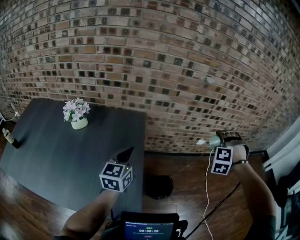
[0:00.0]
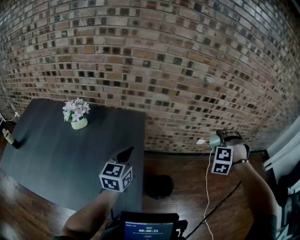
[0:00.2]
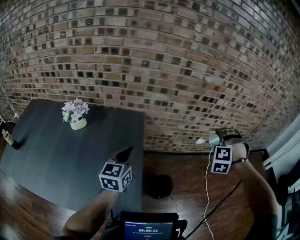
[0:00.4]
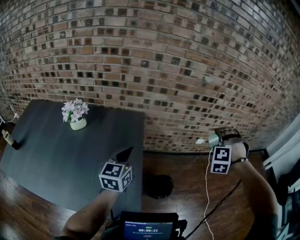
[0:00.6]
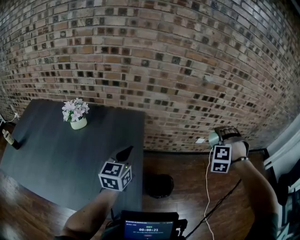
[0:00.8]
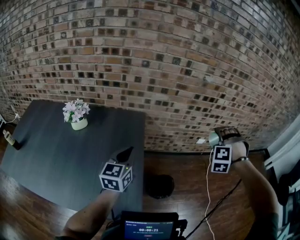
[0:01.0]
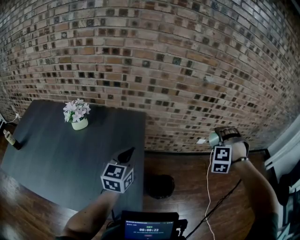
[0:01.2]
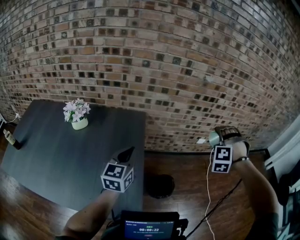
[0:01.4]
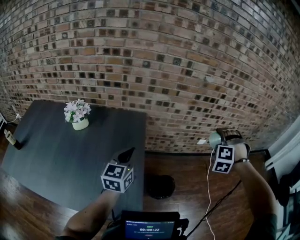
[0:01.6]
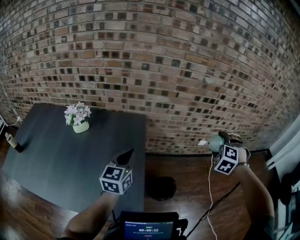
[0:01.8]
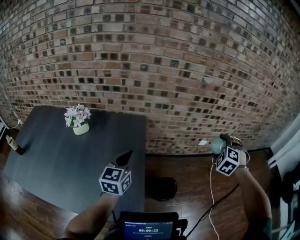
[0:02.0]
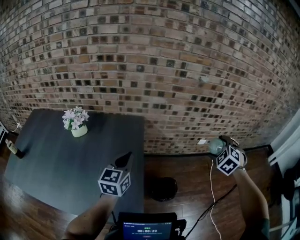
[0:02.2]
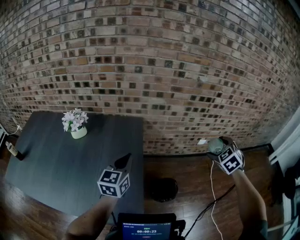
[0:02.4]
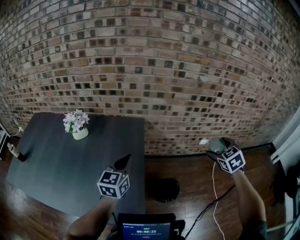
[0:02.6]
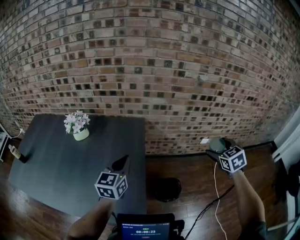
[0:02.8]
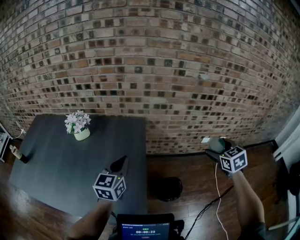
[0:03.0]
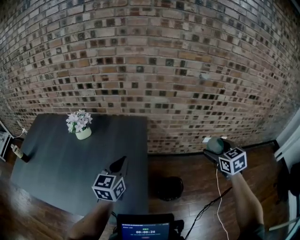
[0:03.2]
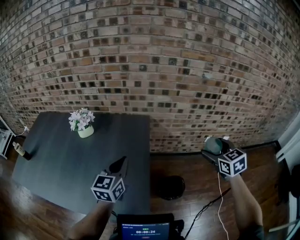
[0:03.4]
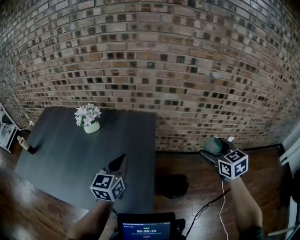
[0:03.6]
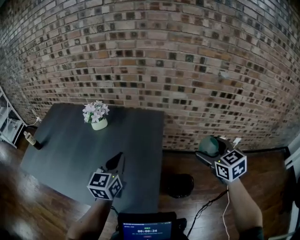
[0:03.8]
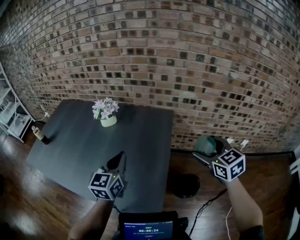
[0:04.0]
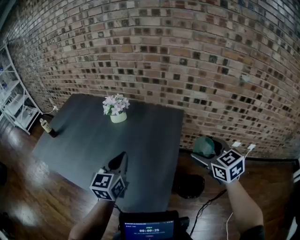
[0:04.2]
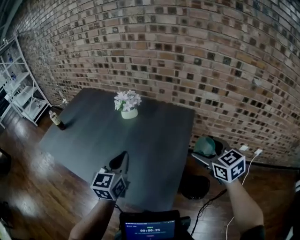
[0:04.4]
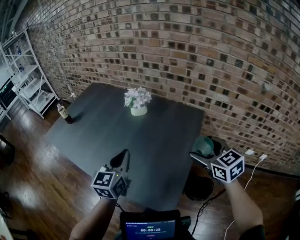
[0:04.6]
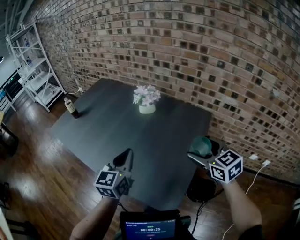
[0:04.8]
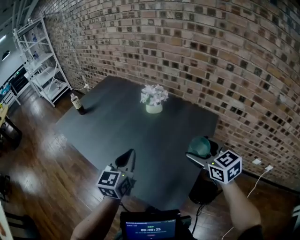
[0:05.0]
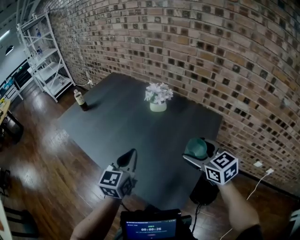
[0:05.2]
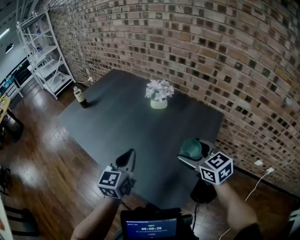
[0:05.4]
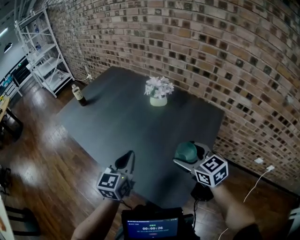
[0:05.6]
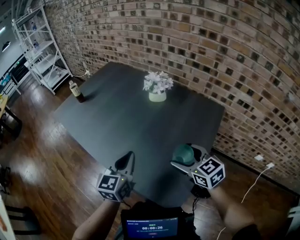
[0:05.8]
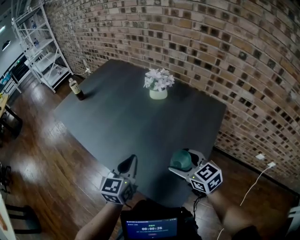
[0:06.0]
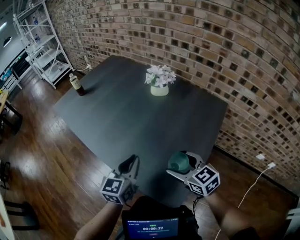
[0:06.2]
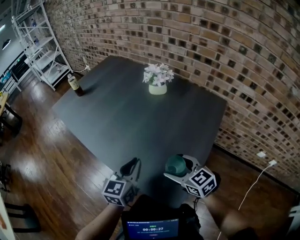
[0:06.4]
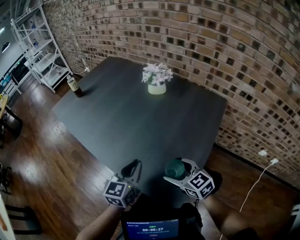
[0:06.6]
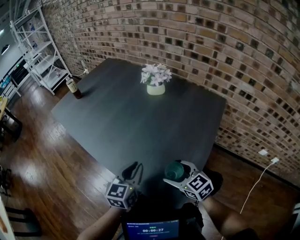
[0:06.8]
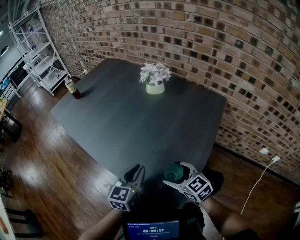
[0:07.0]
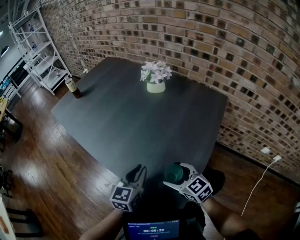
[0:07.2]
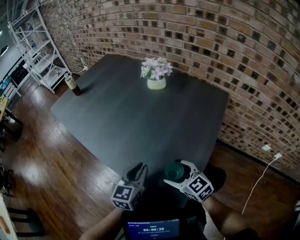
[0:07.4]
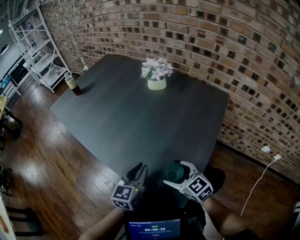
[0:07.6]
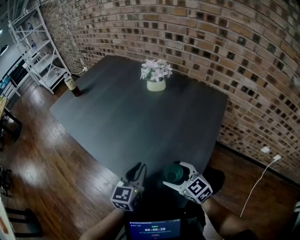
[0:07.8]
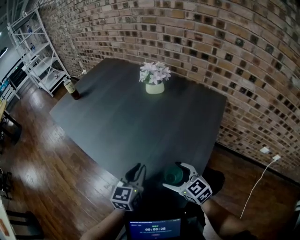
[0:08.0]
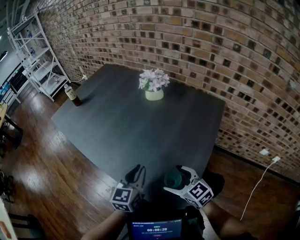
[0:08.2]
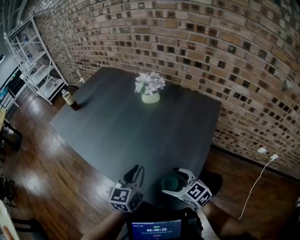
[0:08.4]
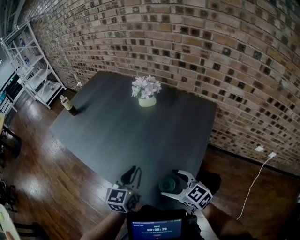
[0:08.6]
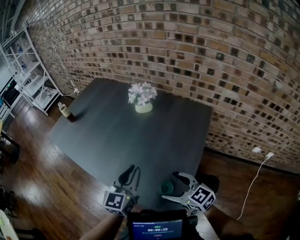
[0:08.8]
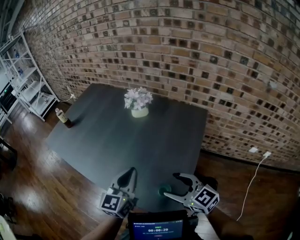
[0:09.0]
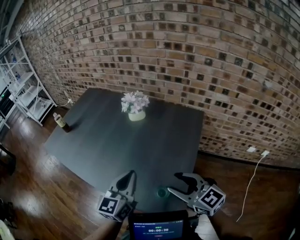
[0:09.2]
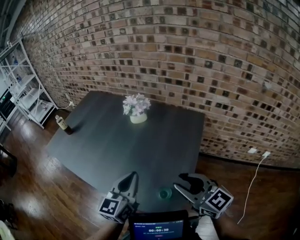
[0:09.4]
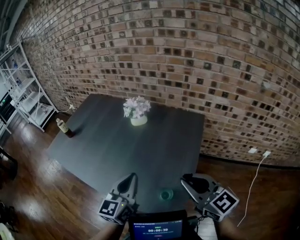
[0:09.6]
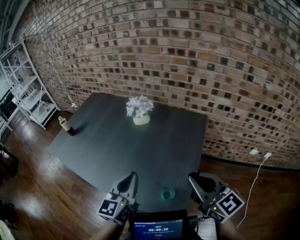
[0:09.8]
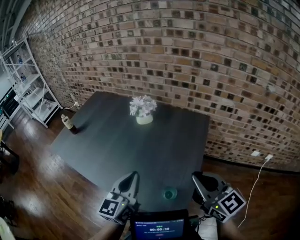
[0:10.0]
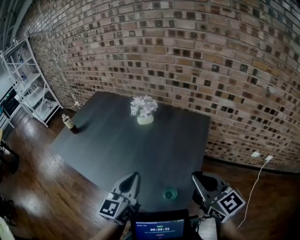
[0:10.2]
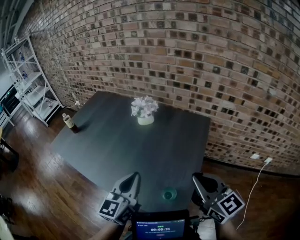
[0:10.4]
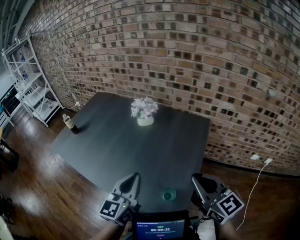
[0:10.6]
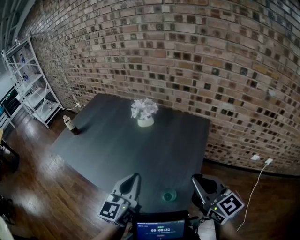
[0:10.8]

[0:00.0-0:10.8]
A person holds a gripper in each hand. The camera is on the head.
0:00.0 to 0:01.6: There are only small adjustments of the grippers.
0:01.6 to 0:03.0: The right gripper twists approximately 70 degrees clockwise, seen from behind.
0:03.0 to 0:04.6: The right gripper moves roughly 35 cm, and rotates some 40 degrees. The left gripper shifts by roughly 25 cm, and swivels some 30 degrees.
0:04.6 to 0:06.2: The right gripper goes roughly 20 cm to the left and downward, and changes its angle by approximately 20 degrees; the left gripper heads downward, covering approximately 10 cm.
0:06.2 to 0:07.8: The two grippers go about 10 cm downward.
0:07.8 to 0:09.2: The grippers both shift upward by roughly 20 cm. The right gripper closes its fingers.
0:09.2 to 0:10.8: The right gripper shifts about 10 cm upward, and closes up, while the left gripper shifts by about 5 cm.

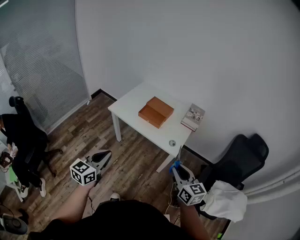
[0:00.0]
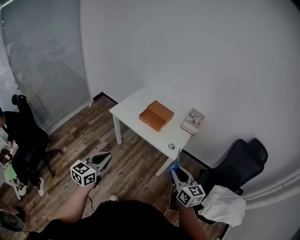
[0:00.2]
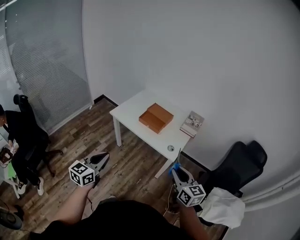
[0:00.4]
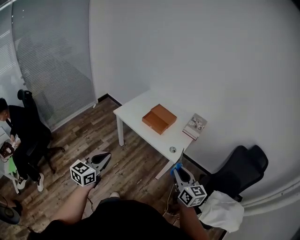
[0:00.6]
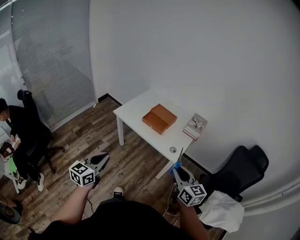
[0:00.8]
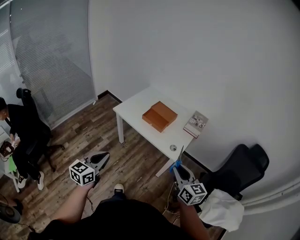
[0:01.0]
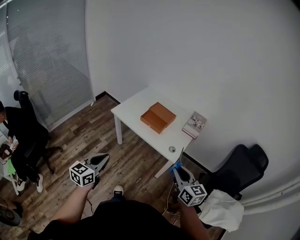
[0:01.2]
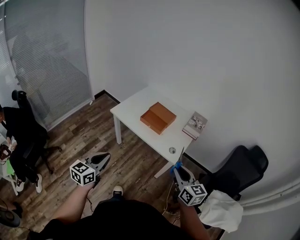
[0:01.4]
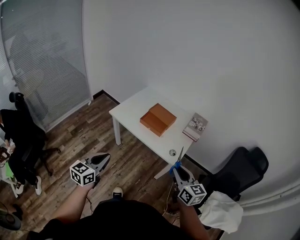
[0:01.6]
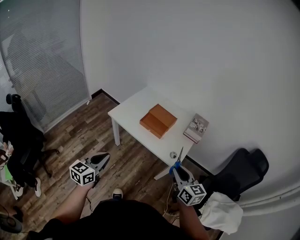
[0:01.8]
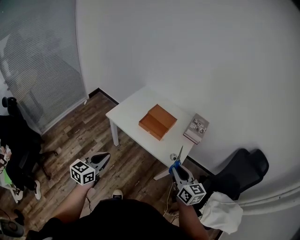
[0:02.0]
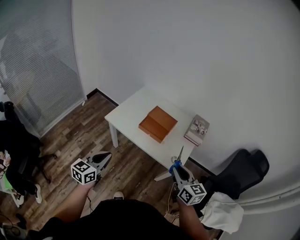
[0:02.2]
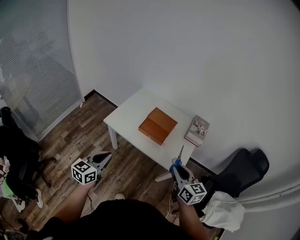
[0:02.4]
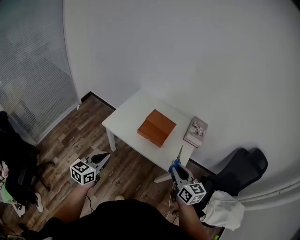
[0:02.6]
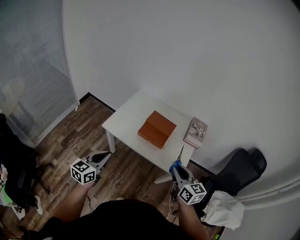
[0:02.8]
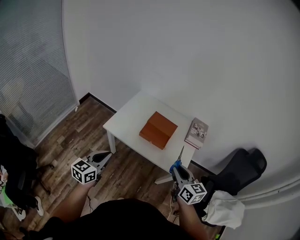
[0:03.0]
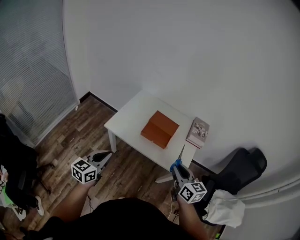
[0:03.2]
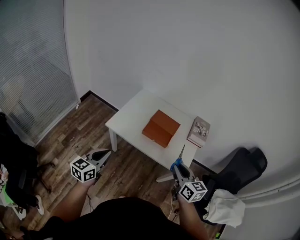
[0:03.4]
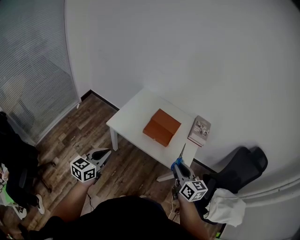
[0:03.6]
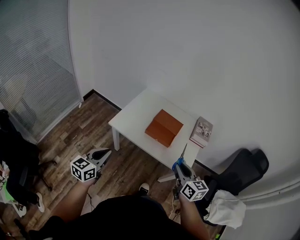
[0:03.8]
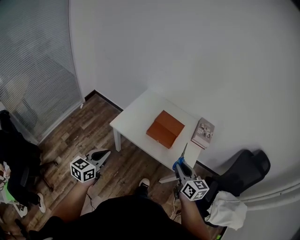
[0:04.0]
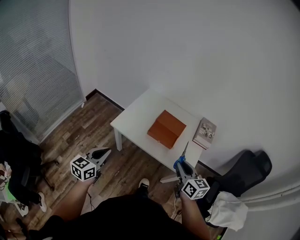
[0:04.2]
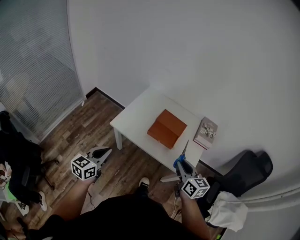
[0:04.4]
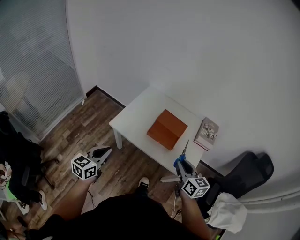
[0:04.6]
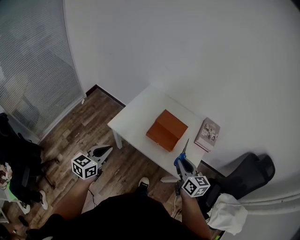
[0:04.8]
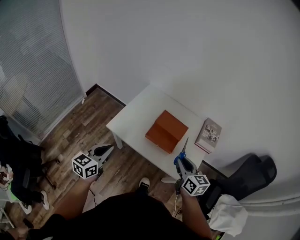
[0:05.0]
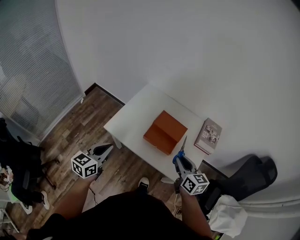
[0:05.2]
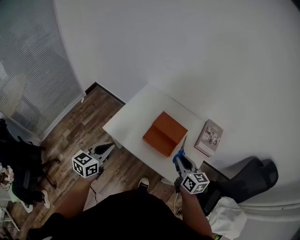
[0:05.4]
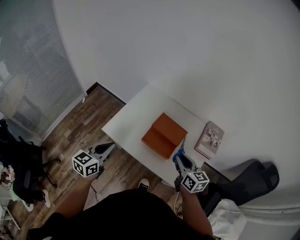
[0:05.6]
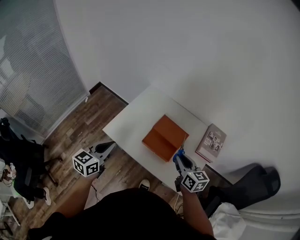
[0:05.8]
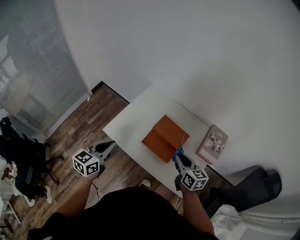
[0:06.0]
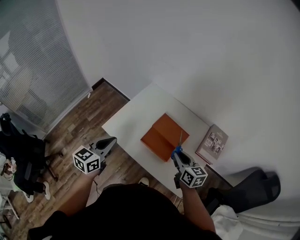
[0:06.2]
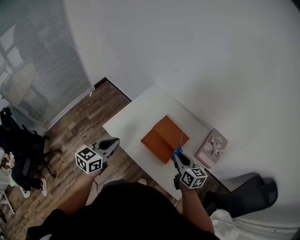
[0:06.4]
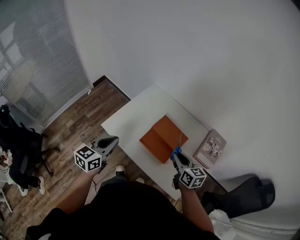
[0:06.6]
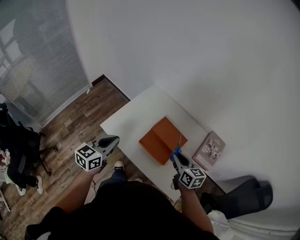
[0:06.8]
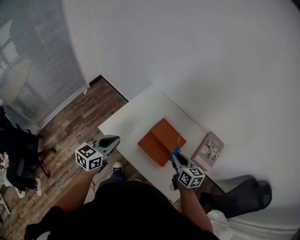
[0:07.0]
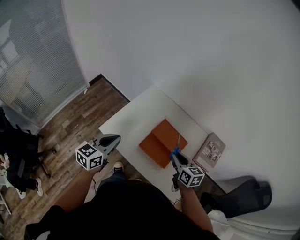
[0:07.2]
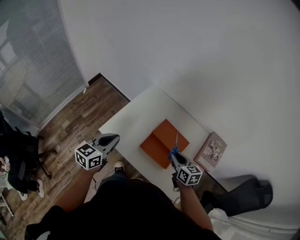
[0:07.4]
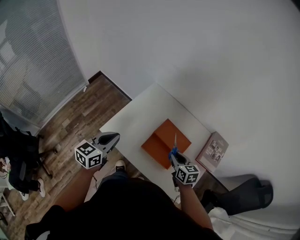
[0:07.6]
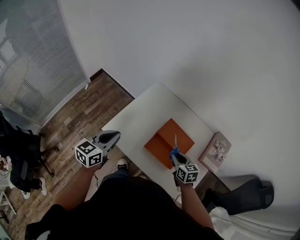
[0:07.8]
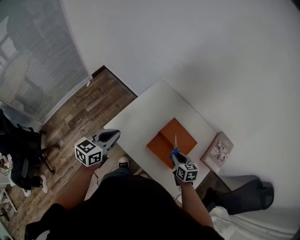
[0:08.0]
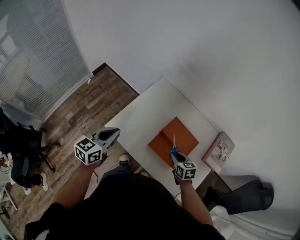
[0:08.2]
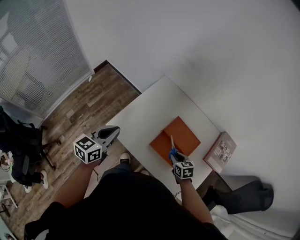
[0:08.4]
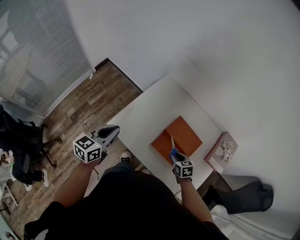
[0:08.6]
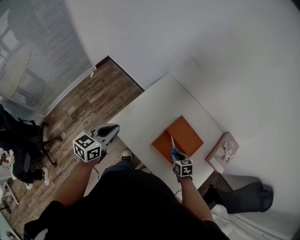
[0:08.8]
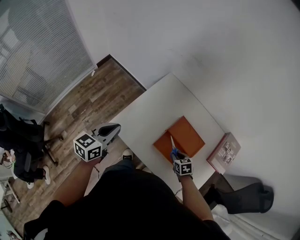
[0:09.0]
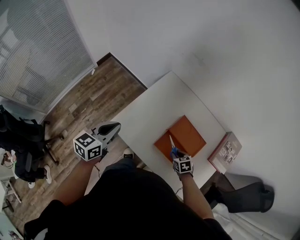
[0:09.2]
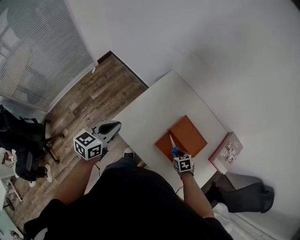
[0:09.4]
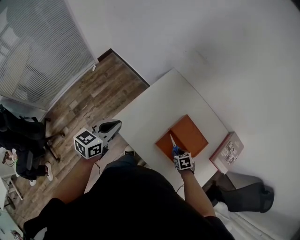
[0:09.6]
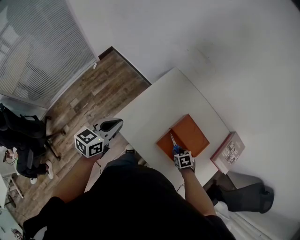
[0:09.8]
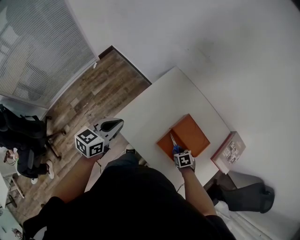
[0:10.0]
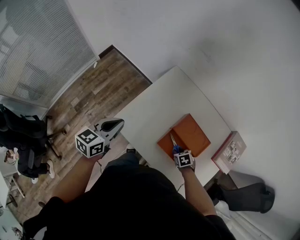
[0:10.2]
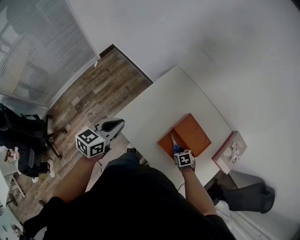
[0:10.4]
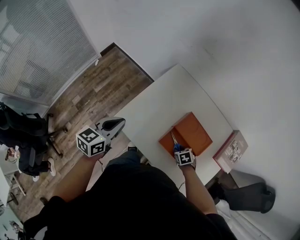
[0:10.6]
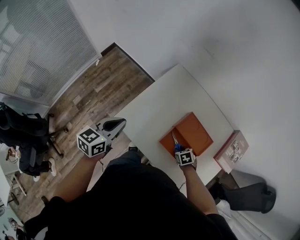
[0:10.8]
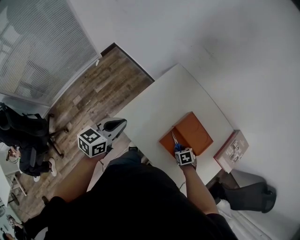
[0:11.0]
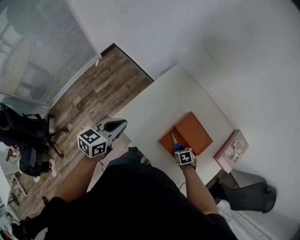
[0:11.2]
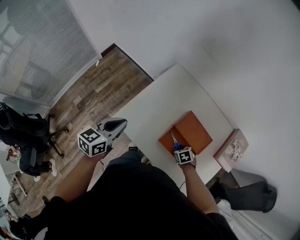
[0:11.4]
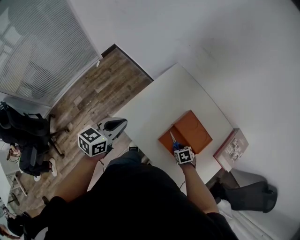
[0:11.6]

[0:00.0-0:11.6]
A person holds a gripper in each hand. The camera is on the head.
0:00.0 to 0:01.4: The grippers stay close to where they were, moving slightly.
0:01.4 to 0:02.8: The grippers both shift forward and to the left by approximately 20 cm.
0:02.8 to 0:04.4: The left gripper heads to the left, covering approximately 5 cm; the right gripper shifts by roughly 5 cm.
0:04.4 to 0:05.8: The left gripper goes roughly 20 cm forward and to the right. Meanwhile the right gripper shifts some 20 cm forward.
0:05.8 to 0:07.2: The left gripper heads forward, covering some 5 cm. Meanwhile the right gripper is displaced forward and downward by roughly 10 cm.
0:07.2 to 0:08.8: The right gripper heads downward, covering approximately 20 cm, and rotates about 30 degrees; the left gripper is displaced to the left and forward by approximately 10 cm.
0:08.8 to 0:10.2: The right gripper moves downward, about 5 cm.
0:10.2 to 0:11.6: The grippers stay close to where they were, moving slightly.

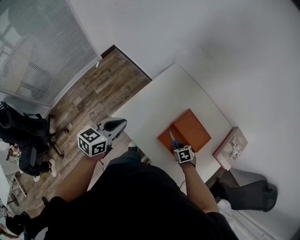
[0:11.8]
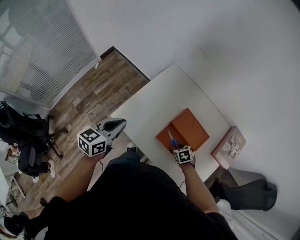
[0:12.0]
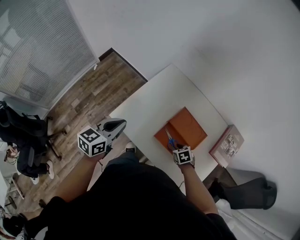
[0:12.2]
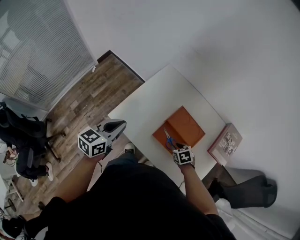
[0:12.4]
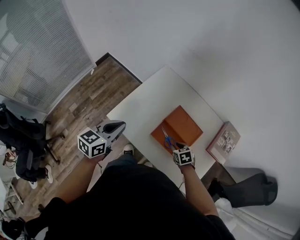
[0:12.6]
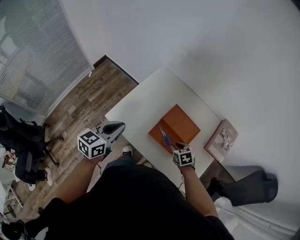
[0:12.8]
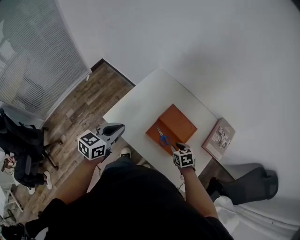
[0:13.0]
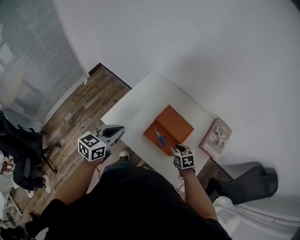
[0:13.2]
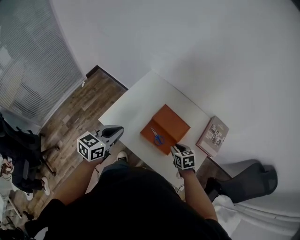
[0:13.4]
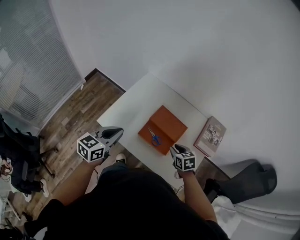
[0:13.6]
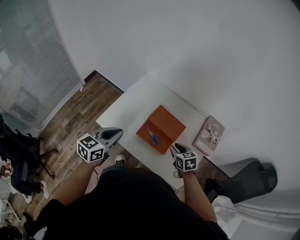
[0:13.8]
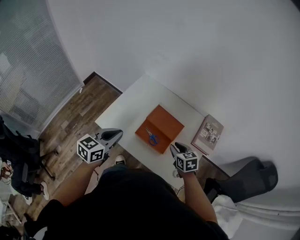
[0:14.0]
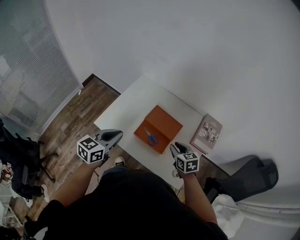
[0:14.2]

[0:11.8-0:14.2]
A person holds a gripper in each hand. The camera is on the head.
0:11.8 to 0:13.0: The left gripper shifts by approximately 10 cm, while the right gripper goes roughly 10 cm upward.
0:13.0 to 0:14.2: The right gripper moves upward, about 10 cm. The left gripper travels to the right by some 5 cm.
